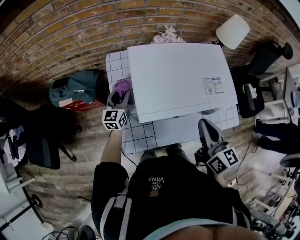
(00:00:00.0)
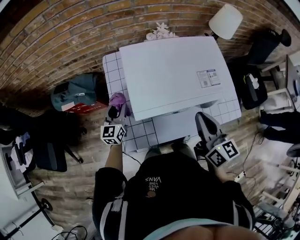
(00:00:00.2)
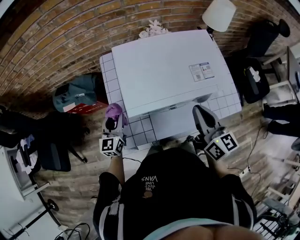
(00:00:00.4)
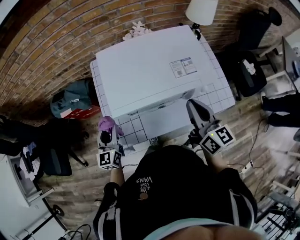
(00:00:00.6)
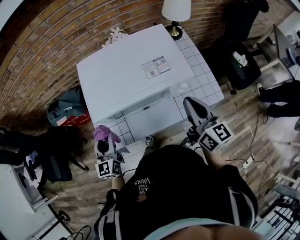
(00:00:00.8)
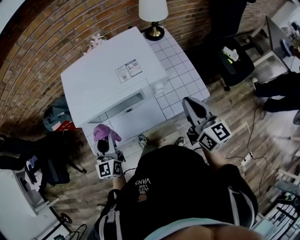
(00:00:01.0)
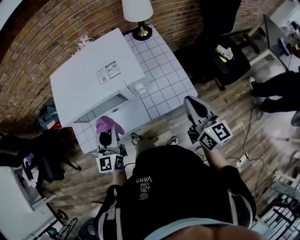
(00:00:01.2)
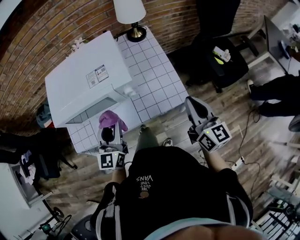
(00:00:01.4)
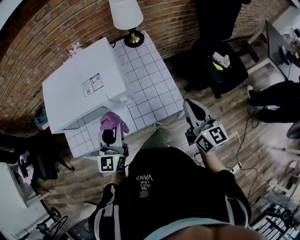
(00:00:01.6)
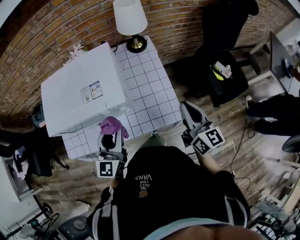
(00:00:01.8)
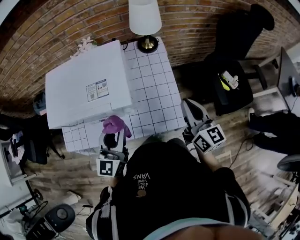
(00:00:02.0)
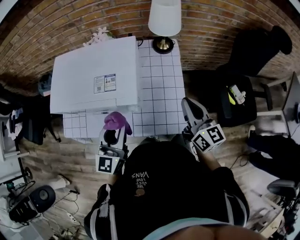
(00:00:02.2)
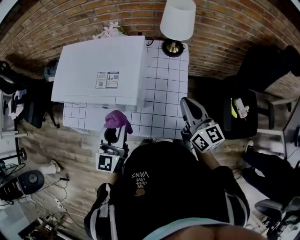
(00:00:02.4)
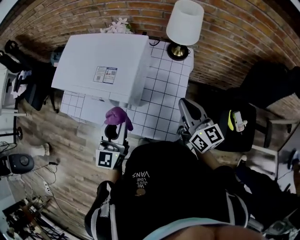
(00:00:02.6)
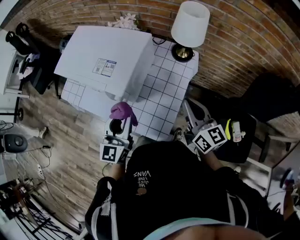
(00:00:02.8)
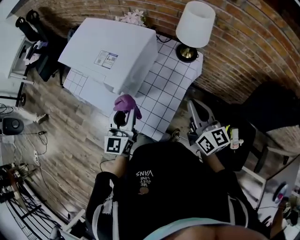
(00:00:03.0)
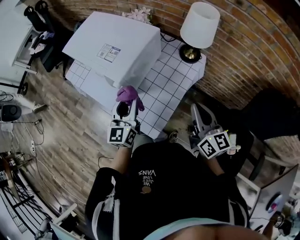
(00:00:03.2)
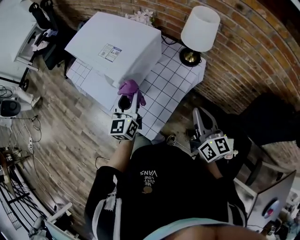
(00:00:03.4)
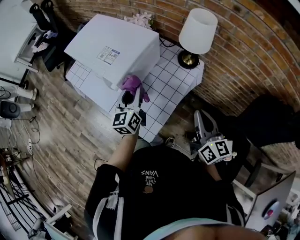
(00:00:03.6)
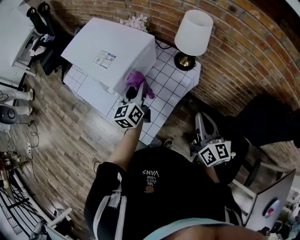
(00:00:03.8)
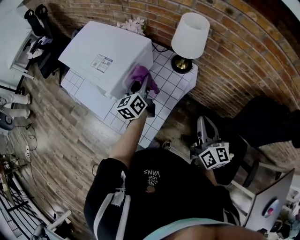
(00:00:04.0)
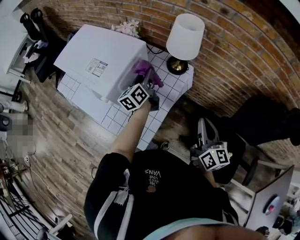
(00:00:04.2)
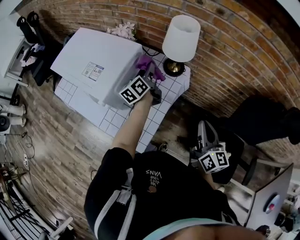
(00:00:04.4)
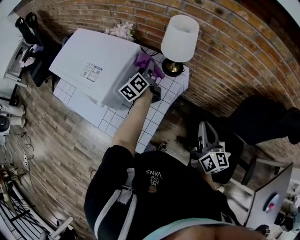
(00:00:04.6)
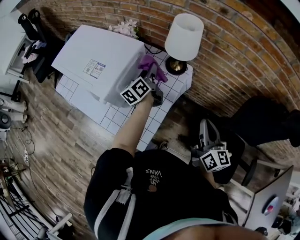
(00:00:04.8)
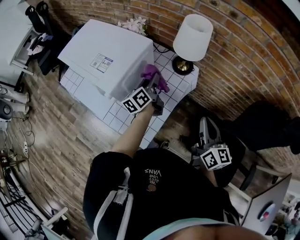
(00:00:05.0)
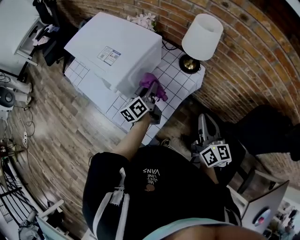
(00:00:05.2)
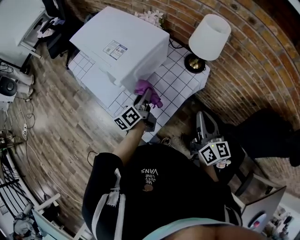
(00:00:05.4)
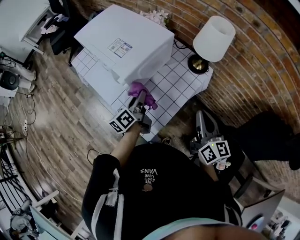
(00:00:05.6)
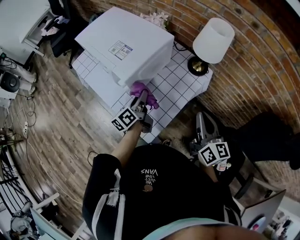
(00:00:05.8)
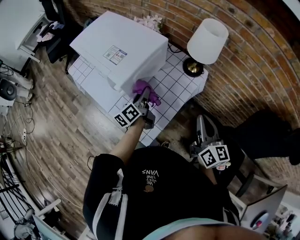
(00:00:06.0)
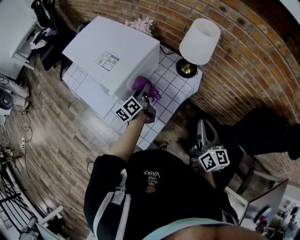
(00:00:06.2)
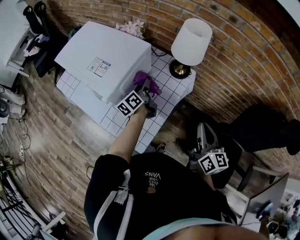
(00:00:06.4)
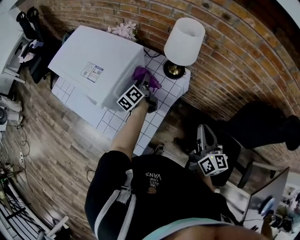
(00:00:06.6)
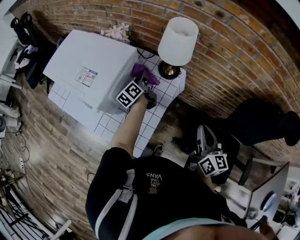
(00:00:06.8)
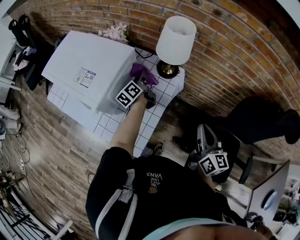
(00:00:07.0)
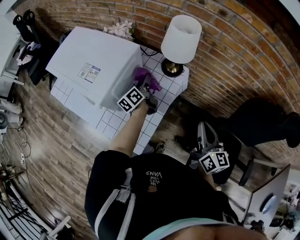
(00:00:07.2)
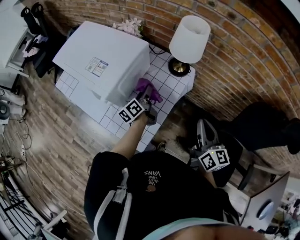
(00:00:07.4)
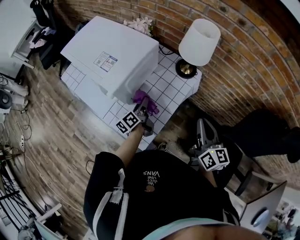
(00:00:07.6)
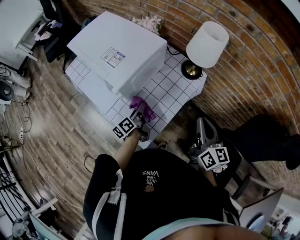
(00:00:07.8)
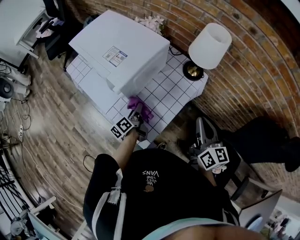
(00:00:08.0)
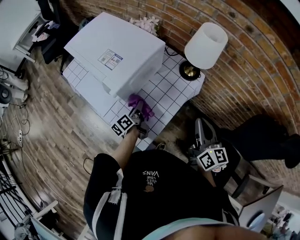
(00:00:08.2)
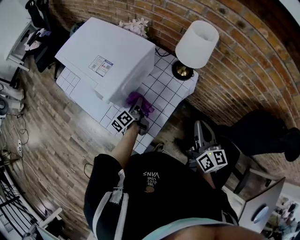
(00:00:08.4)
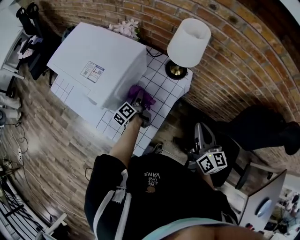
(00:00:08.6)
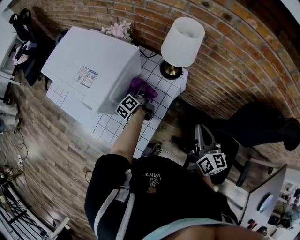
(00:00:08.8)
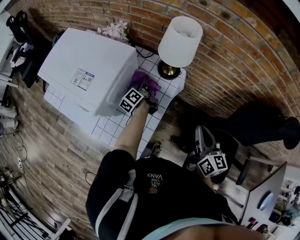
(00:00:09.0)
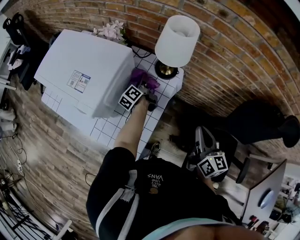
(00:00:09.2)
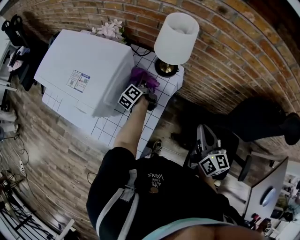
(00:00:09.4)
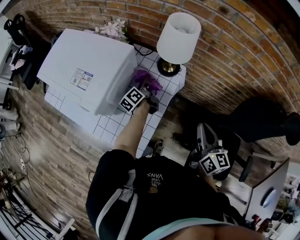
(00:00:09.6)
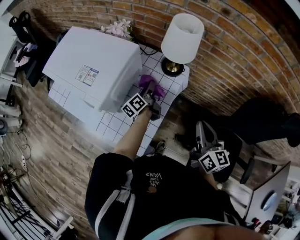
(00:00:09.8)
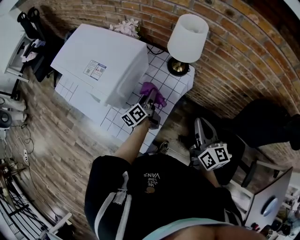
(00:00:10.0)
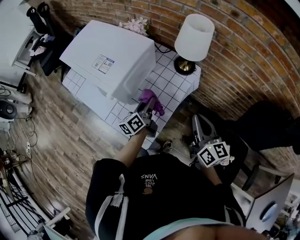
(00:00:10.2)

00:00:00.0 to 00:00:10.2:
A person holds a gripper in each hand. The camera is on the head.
00:00:00.0 to 00:00:01.4: The left gripper goes some 40 cm to the right and backward. Meanwhile the right gripper moves to the right, some 40 cm.
00:00:01.4 to 00:00:03.0: The left gripper ends up about 20 cm from where it was, and turns by about 40 degrees; the right gripper shifts by roughly 25 cm, and changes its angle by about 50 degrees.
00:00:03.0 to 00:00:04.4: The left gripper travels forward and to the right by approximately 30 cm, and twists roughly 40 degrees counterclockwise, seen from behind. The right gripper moves to the right, some 15 cm.
00:00:04.4 to 00:00:05.8: The left gripper travels backward and to the left by some 20 cm; the right gripper travels to the left by approximately 10 cm.
00:00:05.8 to 00:00:07.2: The left gripper shifts approximately 20 cm forward and to the right. Meanwhile the right gripper travels to the right by about 10 cm.
00:00:07.2 to 00:00:08.8: The left gripper shifts about 5 cm downward, and reaches about 15 cm backward, then returns.
00:00:08.8 to 00:00:10.2: The right gripper shifts some 5 cm to the left; the left gripper travels backward and upward by roughly 15 cm, and turns by some 20 degrees.

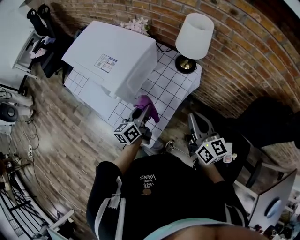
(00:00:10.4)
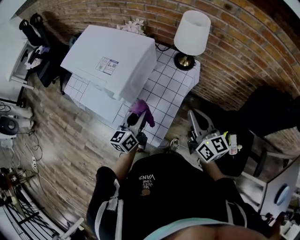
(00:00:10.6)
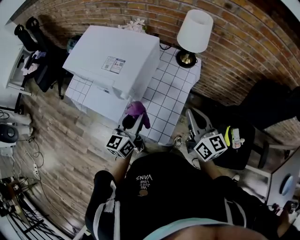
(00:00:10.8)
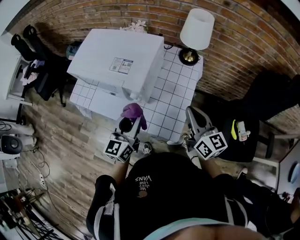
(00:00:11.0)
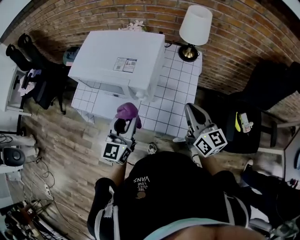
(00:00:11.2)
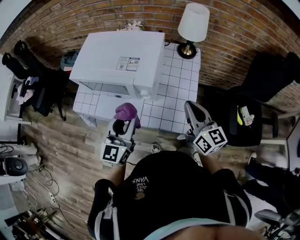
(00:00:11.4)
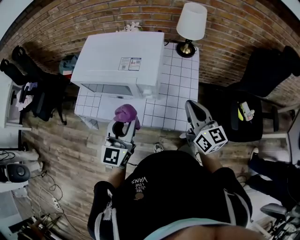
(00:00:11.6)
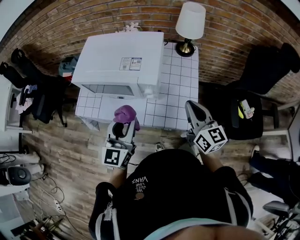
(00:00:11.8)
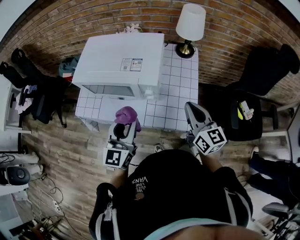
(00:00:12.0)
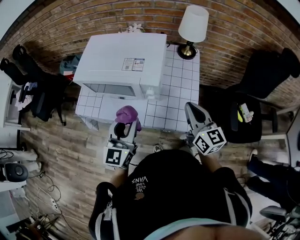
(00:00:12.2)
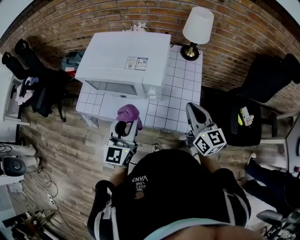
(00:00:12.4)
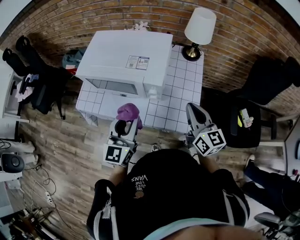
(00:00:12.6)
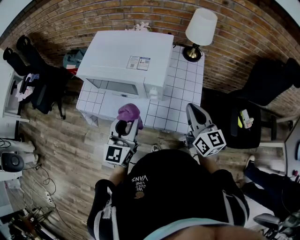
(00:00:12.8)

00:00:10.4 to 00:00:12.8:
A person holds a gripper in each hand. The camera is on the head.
00:00:10.4 to 00:00:11.6: The right gripper moves to the left and backward, roughly 20 cm, and rotates some 20 degrees, while the left gripper heads to the left, upward and backward, covering approximately 30 cm, and rotates around the line of its fingers by some 40 degrees, clockwise from behind.
00:00:11.6 to 00:00:12.8: The grippers move only a little.

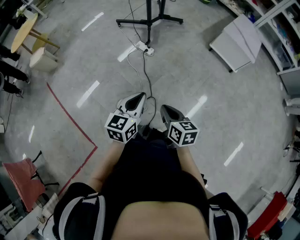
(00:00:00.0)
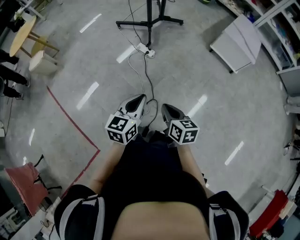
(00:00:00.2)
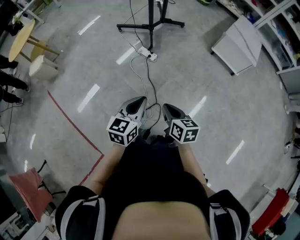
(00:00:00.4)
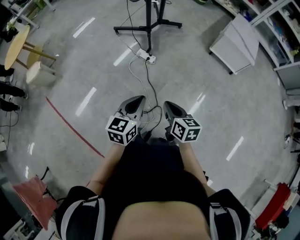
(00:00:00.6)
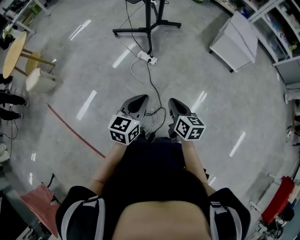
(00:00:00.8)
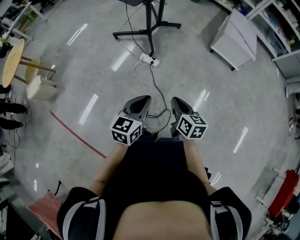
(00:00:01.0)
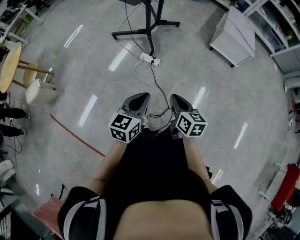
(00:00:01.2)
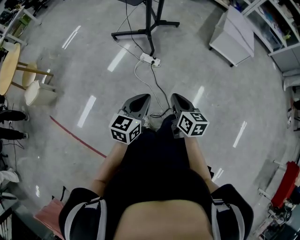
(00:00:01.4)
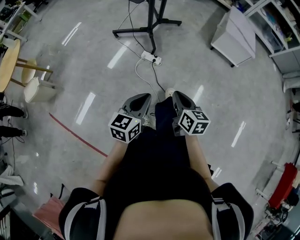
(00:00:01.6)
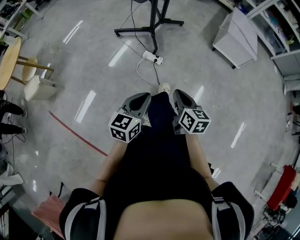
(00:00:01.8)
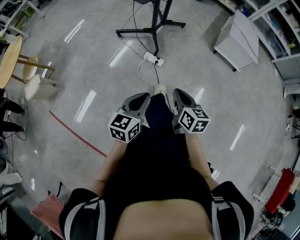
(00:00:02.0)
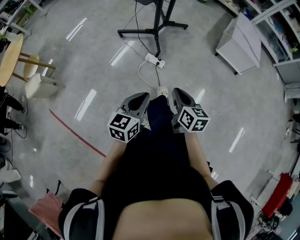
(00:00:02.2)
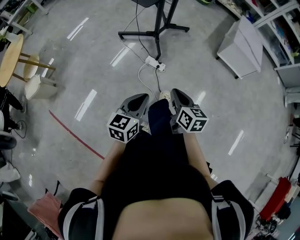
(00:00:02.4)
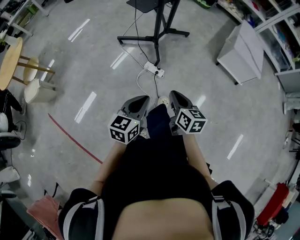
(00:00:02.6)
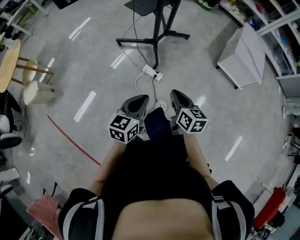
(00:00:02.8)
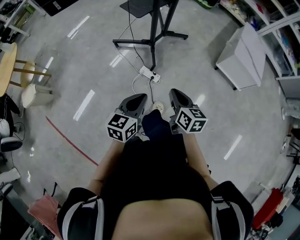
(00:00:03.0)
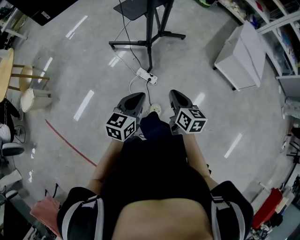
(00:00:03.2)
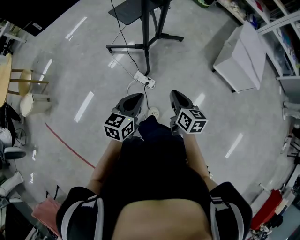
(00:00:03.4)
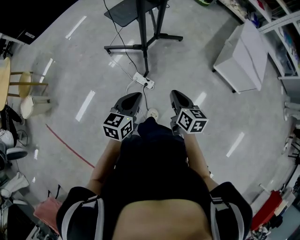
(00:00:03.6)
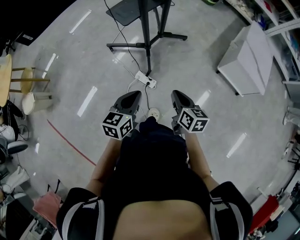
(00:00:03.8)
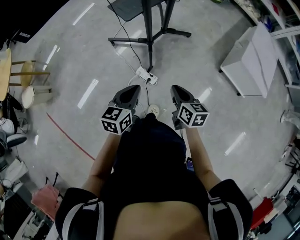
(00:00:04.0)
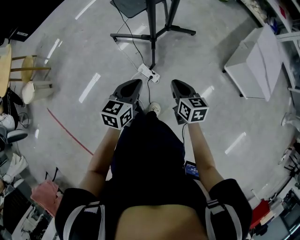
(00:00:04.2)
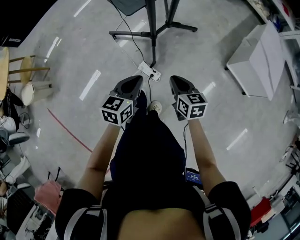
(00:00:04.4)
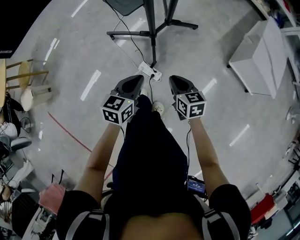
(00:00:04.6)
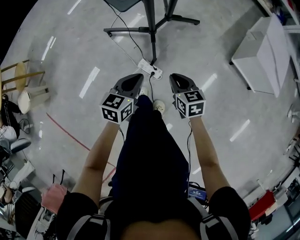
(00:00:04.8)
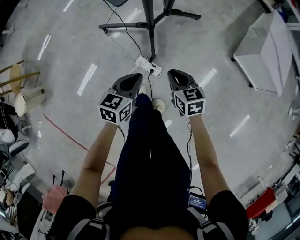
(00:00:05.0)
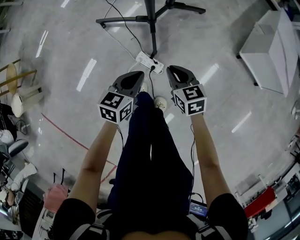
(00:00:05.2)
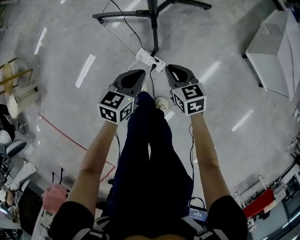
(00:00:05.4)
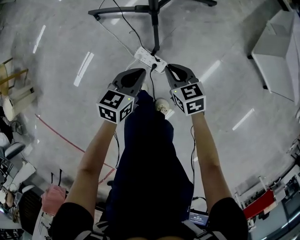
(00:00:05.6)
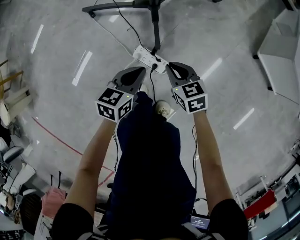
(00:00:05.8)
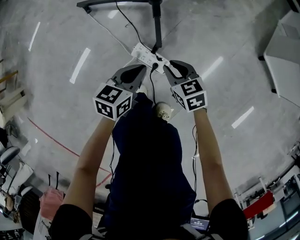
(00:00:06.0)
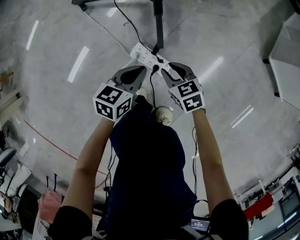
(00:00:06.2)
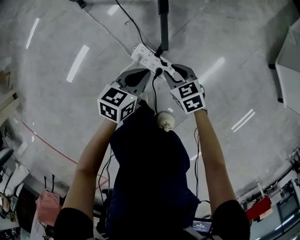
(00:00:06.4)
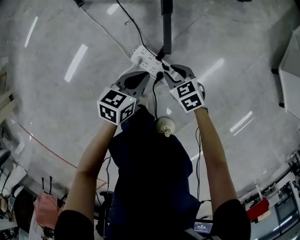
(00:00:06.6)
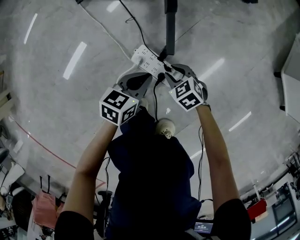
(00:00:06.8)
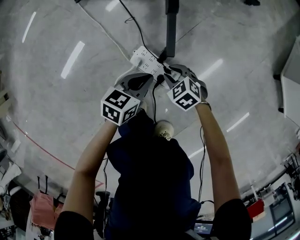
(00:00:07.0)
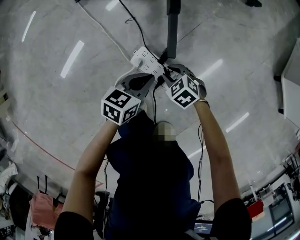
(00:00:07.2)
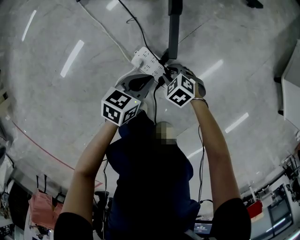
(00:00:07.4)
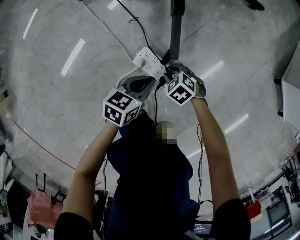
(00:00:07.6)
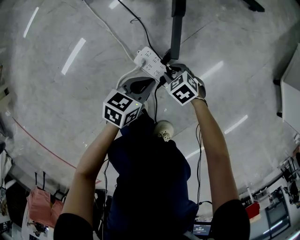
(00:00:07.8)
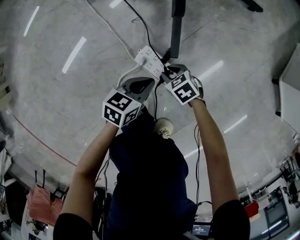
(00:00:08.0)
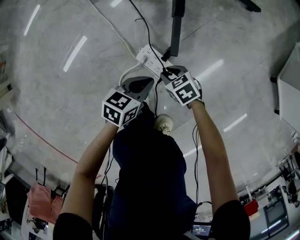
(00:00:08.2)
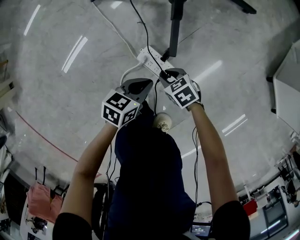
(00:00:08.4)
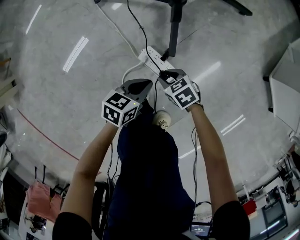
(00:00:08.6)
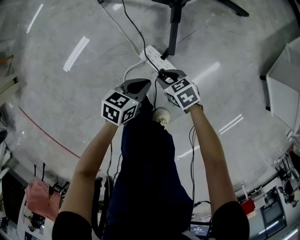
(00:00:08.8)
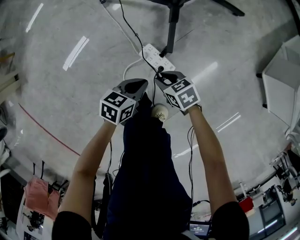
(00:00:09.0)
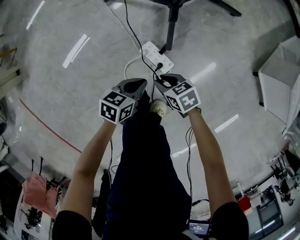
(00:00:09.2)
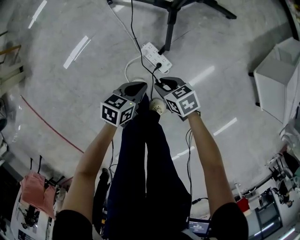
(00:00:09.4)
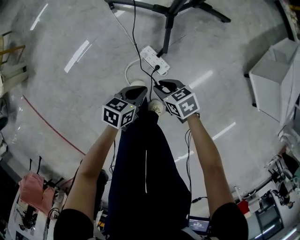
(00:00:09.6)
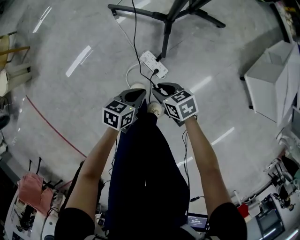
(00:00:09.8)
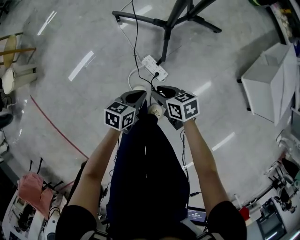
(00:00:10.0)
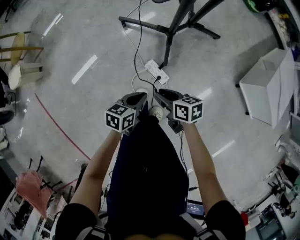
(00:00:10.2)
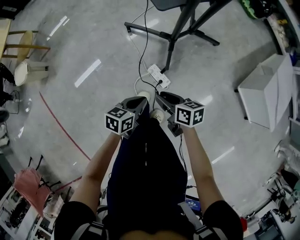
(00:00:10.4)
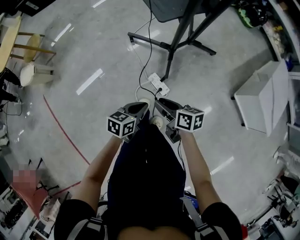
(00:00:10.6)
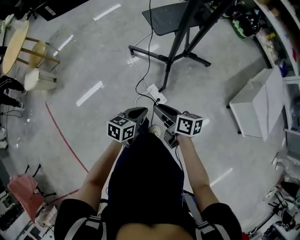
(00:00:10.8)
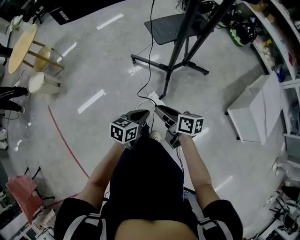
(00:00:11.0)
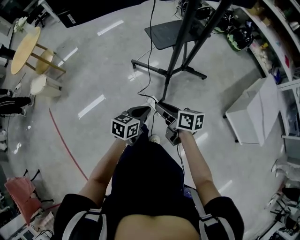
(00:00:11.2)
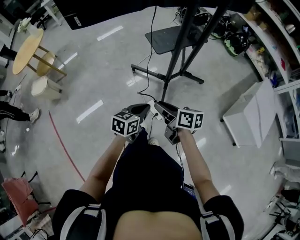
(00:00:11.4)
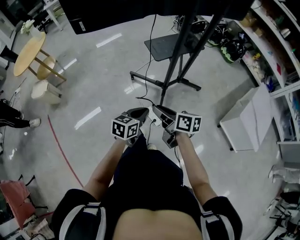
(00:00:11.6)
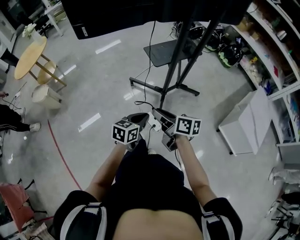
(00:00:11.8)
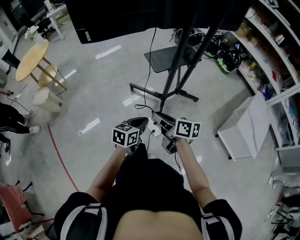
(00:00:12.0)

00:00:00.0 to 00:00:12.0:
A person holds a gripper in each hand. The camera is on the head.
00:00:00.0 to 00:00:01.6: Both grippers move to the left and forward, some 30 cm.
00:00:01.6 to 00:00:03.0: The two grippers go about 25 cm forward.
00:00:03.0 to 00:00:04.4: The right gripper shifts approximately 25 cm forward and downward. Meanwhile the left gripper travels forward by about 25 cm.
00:00:04.4 to 00:00:06.0: The grippers both shift downward by about 50 cm. The right gripper swivels approximately 20 degrees.
00:00:06.0 to 00:00:07.6: The grippers both shift downward by about 25 cm. The right gripper rotates roughly 40 degrees.
00:00:07.6 to 00:00:09.0: The two grippers go about 20 cm upward. The right gripper turns by roughly 30 degrees.
00:00:09.0 to 00:00:10.4: Both grippers move upward, roughly 35 cm. The right gripper changes its angle by some 30 degrees.
00:00:10.4 to 00:00:12.0: The grippers both shift upward by some 25 cm.
